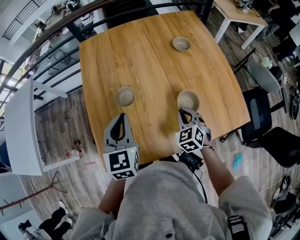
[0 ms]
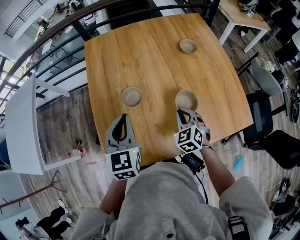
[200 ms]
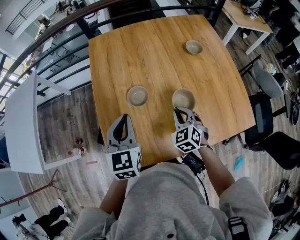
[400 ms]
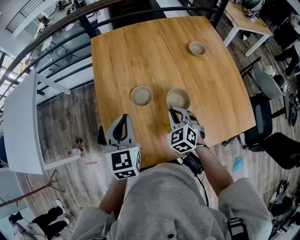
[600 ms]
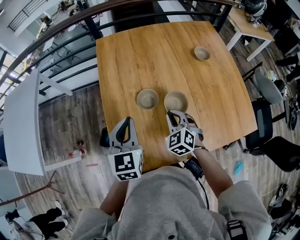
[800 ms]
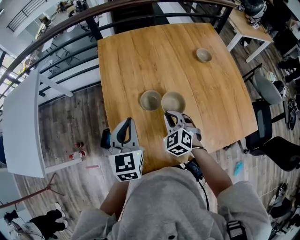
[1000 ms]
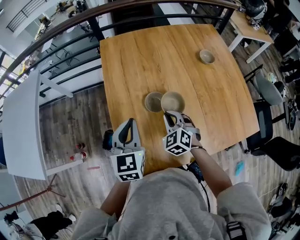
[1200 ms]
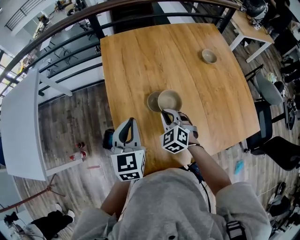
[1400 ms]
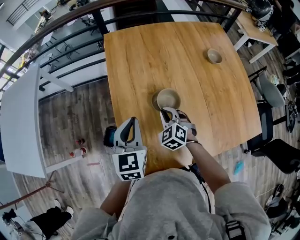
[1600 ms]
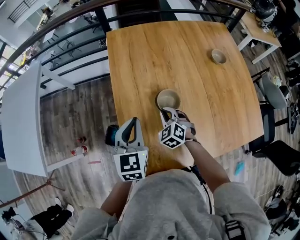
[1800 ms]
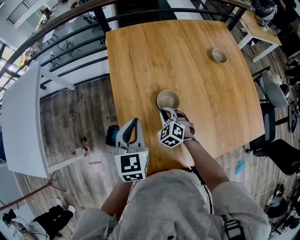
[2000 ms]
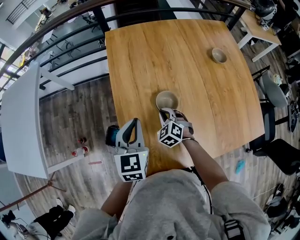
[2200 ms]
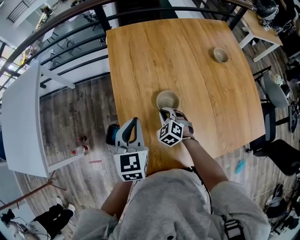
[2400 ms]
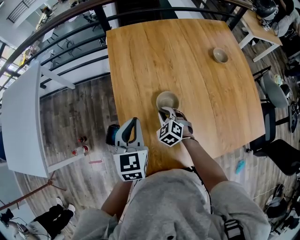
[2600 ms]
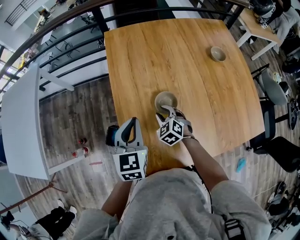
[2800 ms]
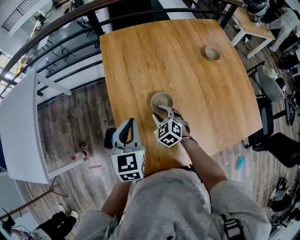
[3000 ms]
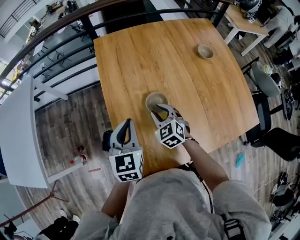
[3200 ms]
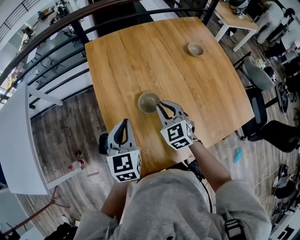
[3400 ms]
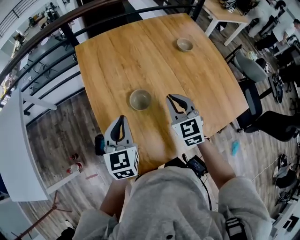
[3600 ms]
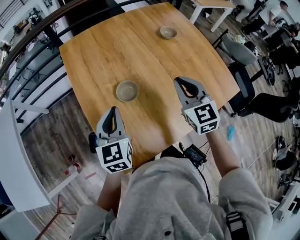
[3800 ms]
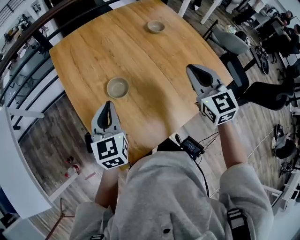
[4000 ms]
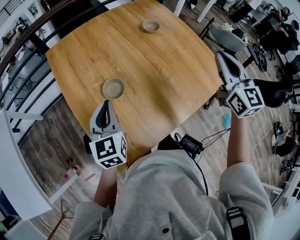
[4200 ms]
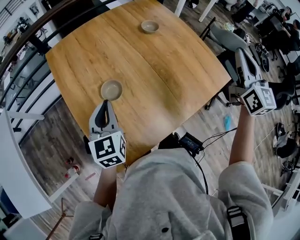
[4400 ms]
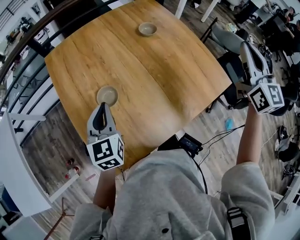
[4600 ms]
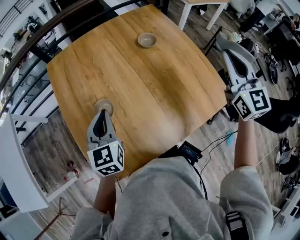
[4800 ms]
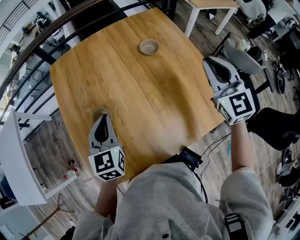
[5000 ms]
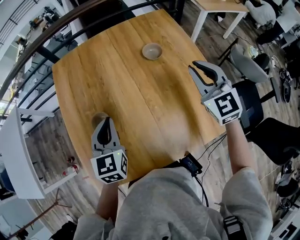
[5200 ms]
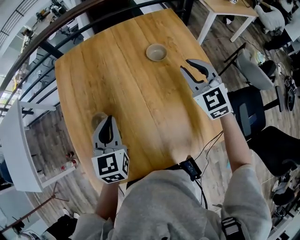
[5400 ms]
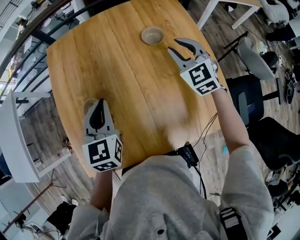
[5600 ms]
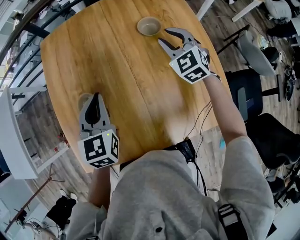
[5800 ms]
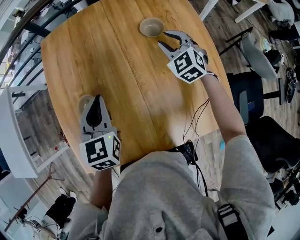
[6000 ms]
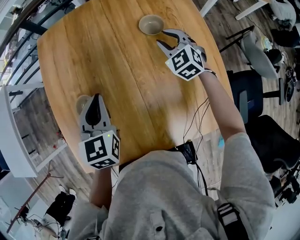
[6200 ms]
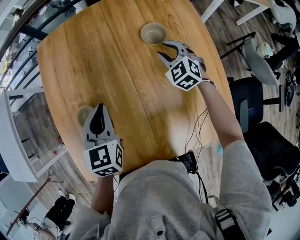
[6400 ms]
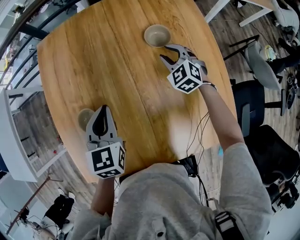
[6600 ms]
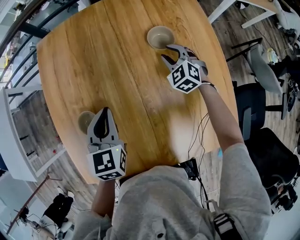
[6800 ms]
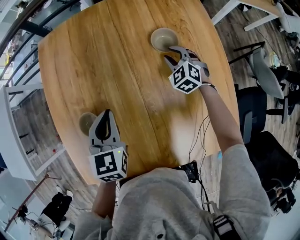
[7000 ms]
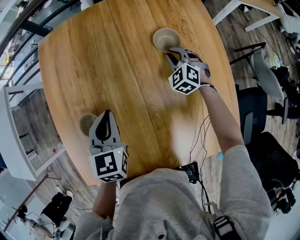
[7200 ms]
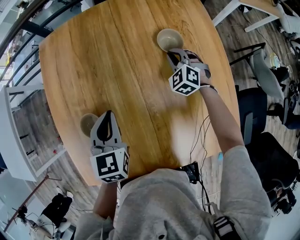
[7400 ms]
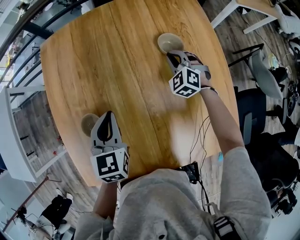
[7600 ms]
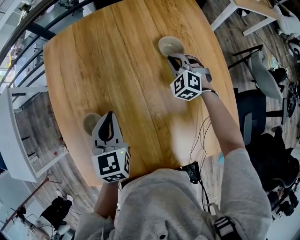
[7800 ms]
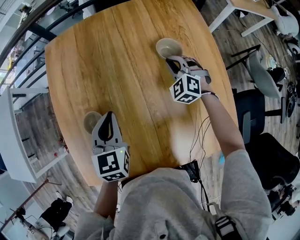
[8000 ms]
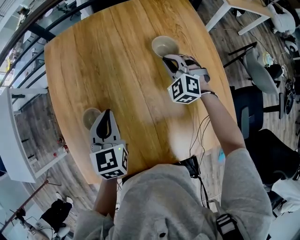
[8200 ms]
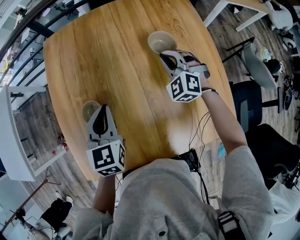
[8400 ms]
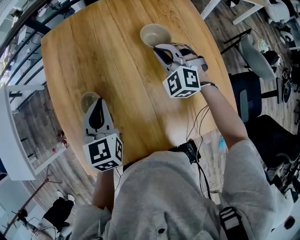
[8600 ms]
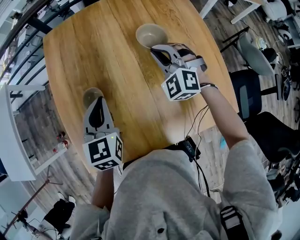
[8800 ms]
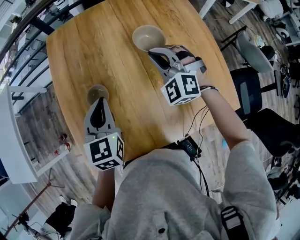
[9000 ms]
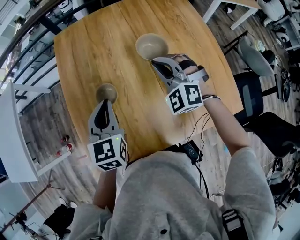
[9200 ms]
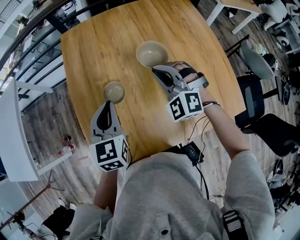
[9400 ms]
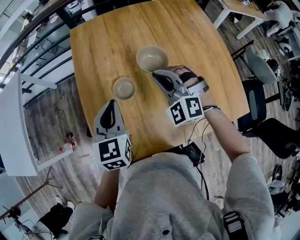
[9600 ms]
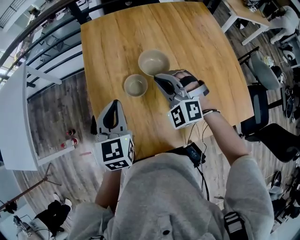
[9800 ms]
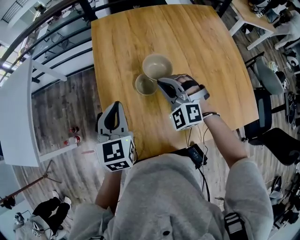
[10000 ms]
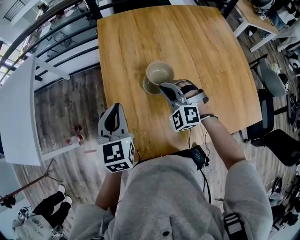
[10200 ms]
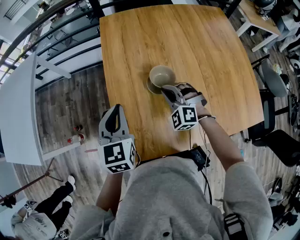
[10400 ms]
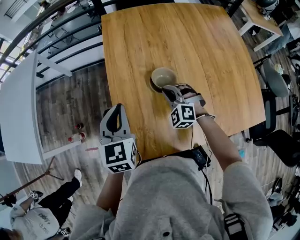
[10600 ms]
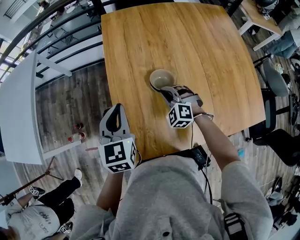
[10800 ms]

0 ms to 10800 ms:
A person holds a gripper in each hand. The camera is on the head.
0 ms to 1600 ms: The left gripper is displaced to the left by about 15 cm. The right gripper travels to the left by about 25 cm.
1600 ms to 3000 ms: The right gripper opens up.
3000 ms to 4600 ms: The left gripper is displaced to the right by roughly 15 cm, while the right gripper heads to the right and upward, covering roughly 60 cm, tilts its fingers some 50 degrees upward, and closes its fingers.
4600 ms to 6200 ms: The right gripper heads forward and downward, covering some 50 cm, angles its fingers downward, by roughly 40 degrees, and opens its fingers, while the left gripper moves to the right and forward, approximately 20 cm.
6200 ms to 7800 ms: The right gripper moves downward, some 5 cm, and closes.
7800 ms to 9200 ms: The left gripper moves to the left, backward and upward, approximately 15 cm. Meanwhile the right gripper is displaced backward, to the left and upward by some 30 cm.
9200 ms to 10800 ms: The right gripper moves to the left and downward, about 30 cm, while the left gripper is displaced to the left by roughly 25 cm.

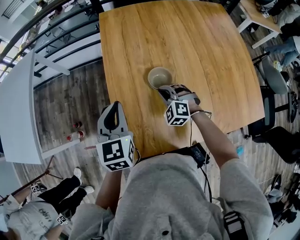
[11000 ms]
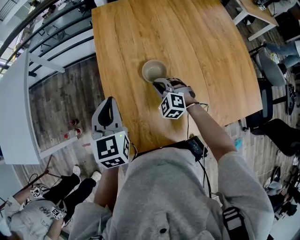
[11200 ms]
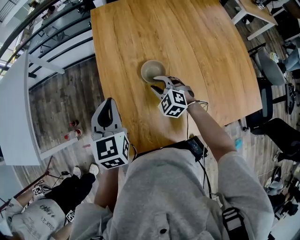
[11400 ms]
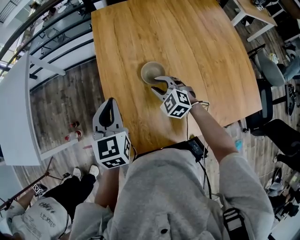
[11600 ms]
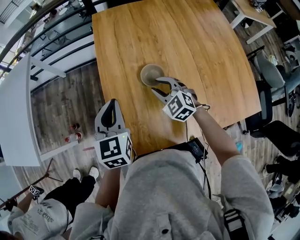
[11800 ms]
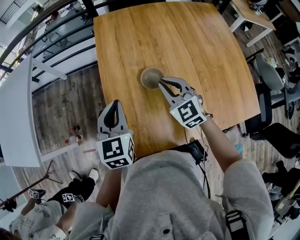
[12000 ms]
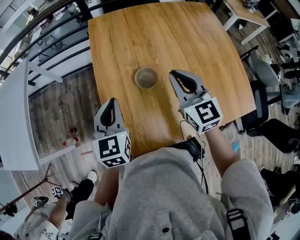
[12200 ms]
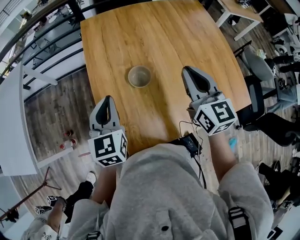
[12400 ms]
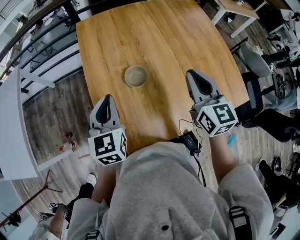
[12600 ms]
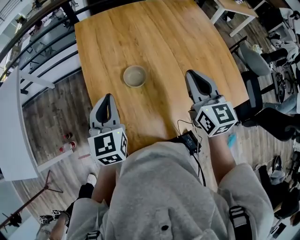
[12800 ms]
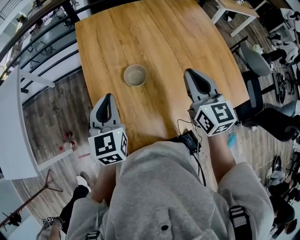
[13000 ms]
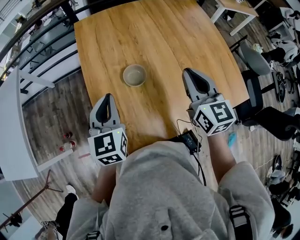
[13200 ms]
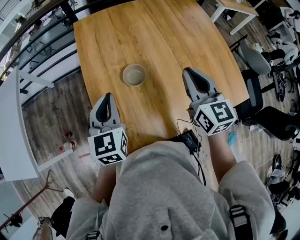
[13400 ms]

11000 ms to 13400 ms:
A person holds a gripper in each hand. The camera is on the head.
11000 ms to 12200 ms: The right gripper travels upward by approximately 25 cm, angles its fingers upward, by approximately 30 degrees, and opens and closes again.
12200 ms to 13400 ms: The right gripper is displaced to the right by some 10 cm.

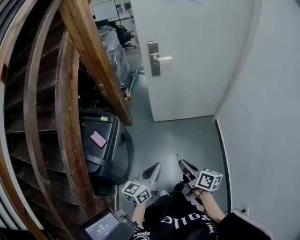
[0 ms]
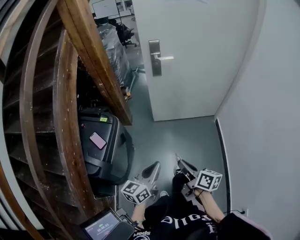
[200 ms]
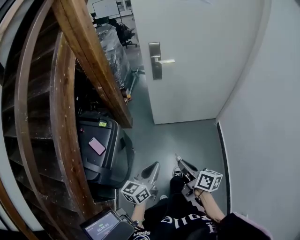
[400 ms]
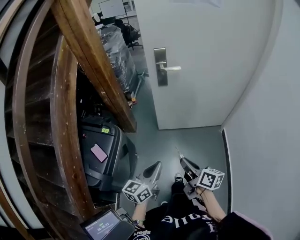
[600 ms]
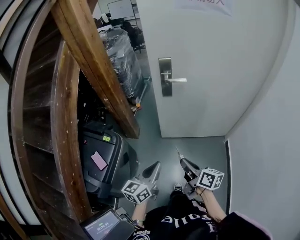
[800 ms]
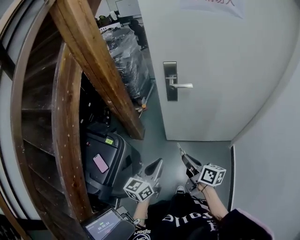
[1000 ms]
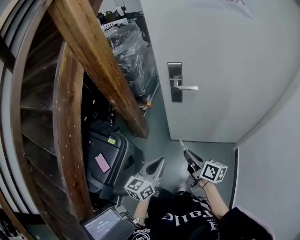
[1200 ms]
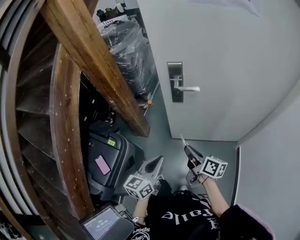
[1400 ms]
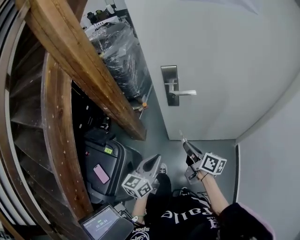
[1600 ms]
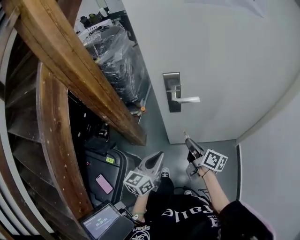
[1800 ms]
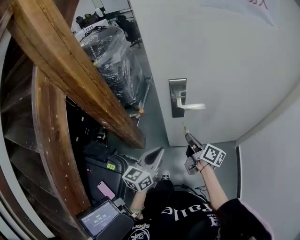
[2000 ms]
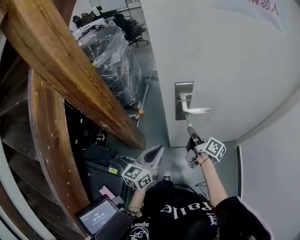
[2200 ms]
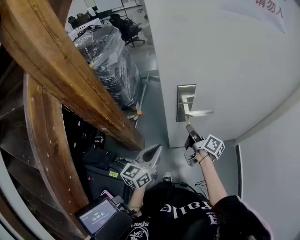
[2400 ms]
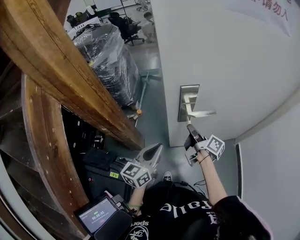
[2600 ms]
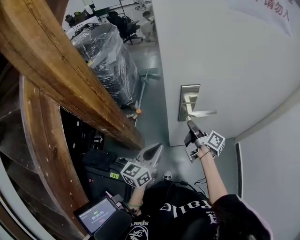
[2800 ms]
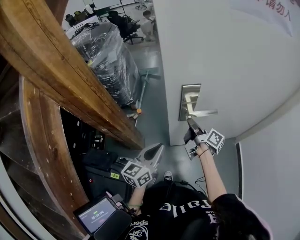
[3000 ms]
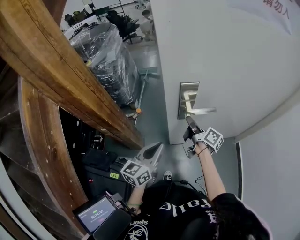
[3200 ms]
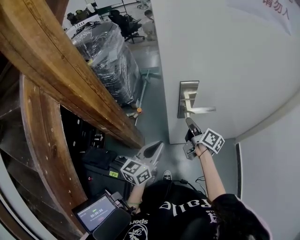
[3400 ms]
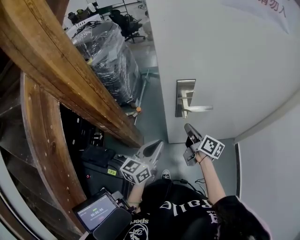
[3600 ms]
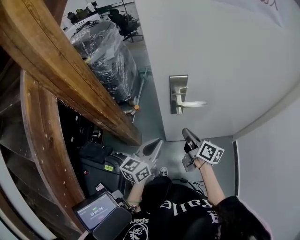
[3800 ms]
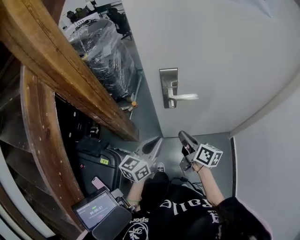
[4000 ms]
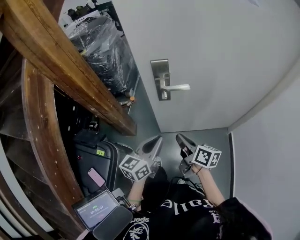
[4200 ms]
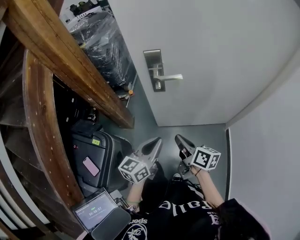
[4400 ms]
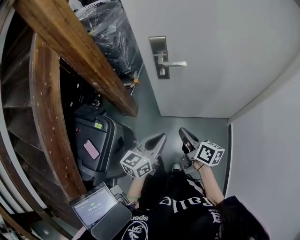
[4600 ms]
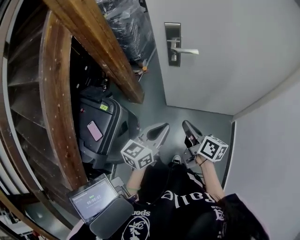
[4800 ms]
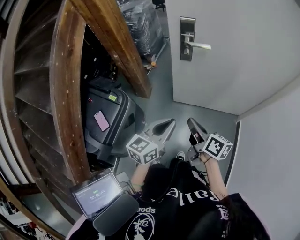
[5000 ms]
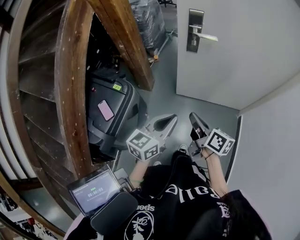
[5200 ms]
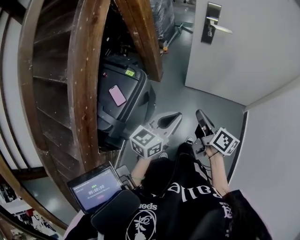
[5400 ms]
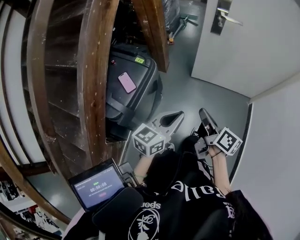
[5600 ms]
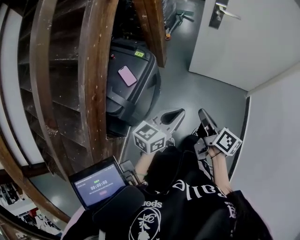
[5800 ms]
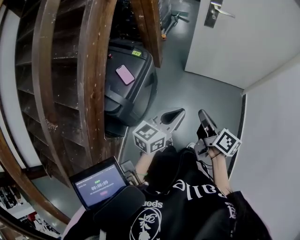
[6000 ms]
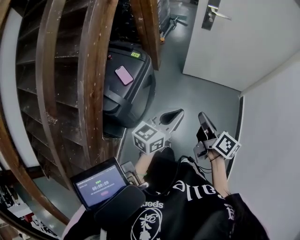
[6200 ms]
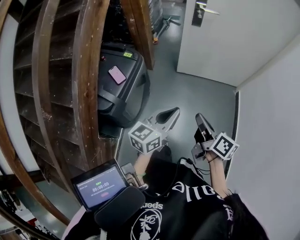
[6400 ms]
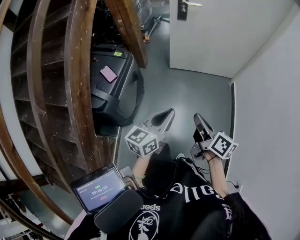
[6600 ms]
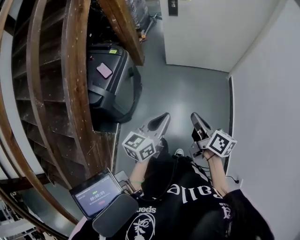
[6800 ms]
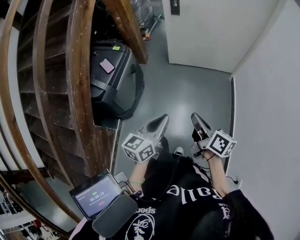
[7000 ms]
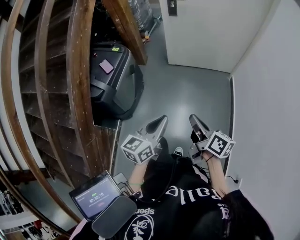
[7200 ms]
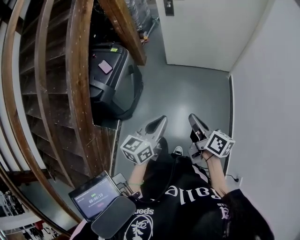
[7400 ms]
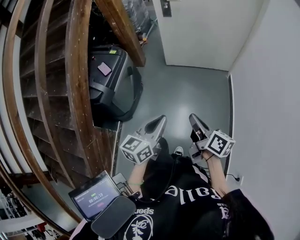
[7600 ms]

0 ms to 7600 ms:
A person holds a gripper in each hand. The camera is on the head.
0 ms to 1600 ms: Both grippers are carried forward, approximately 40 cm.
1600 ms to 3000 ms: The right gripper heads forward, covering approximately 25 cm, and turns by roughly 30 degrees, while the left gripper travels forward and to the left by some 20 cm.
3000 ms to 4600 ms: Both grippers travel together backward and to the right, some 30 cm. The right gripper rotates approximately 30 degrees.
4600 ms to 6000 ms: Both grippers move backward and to the left, about 40 cm.
6000 ms to 7600 ms: Both grippers move backward and to the right, about 30 cm.

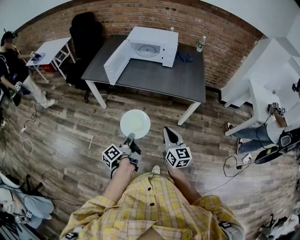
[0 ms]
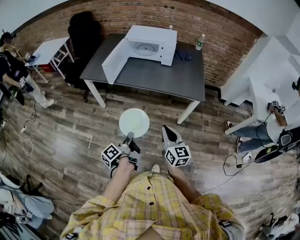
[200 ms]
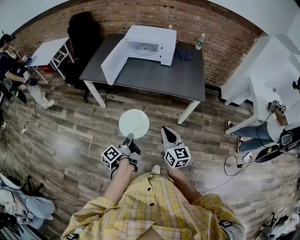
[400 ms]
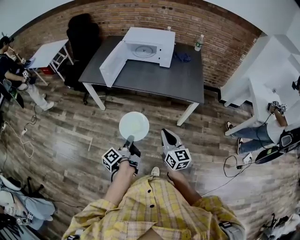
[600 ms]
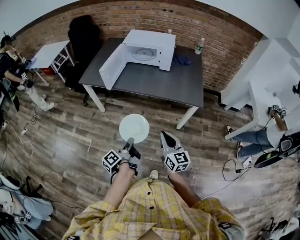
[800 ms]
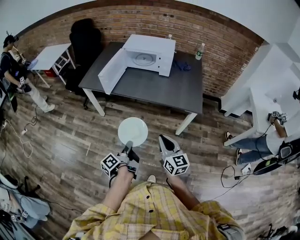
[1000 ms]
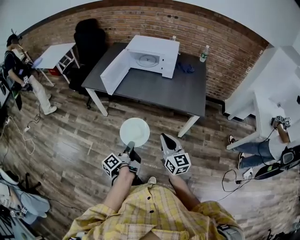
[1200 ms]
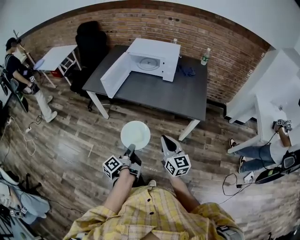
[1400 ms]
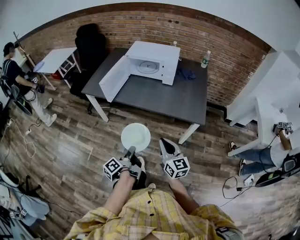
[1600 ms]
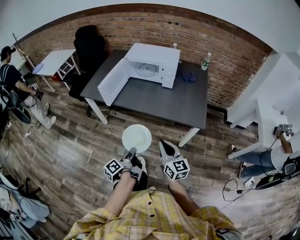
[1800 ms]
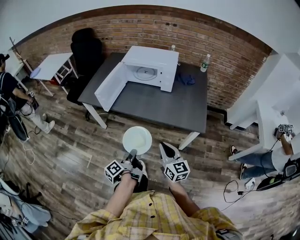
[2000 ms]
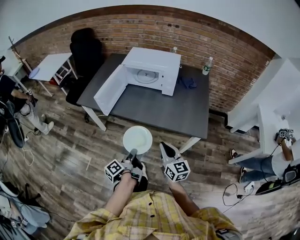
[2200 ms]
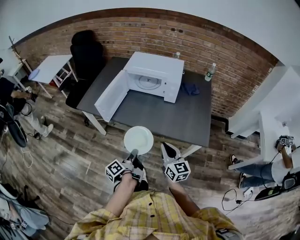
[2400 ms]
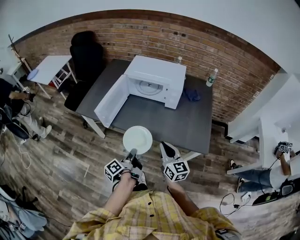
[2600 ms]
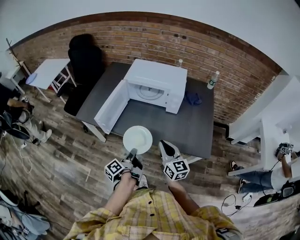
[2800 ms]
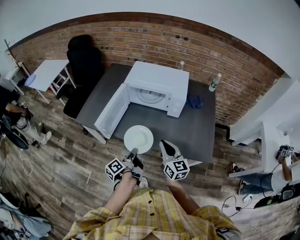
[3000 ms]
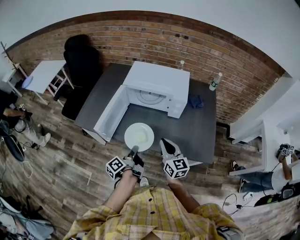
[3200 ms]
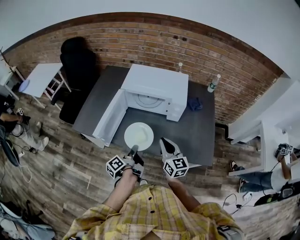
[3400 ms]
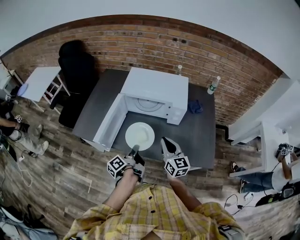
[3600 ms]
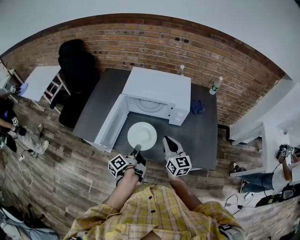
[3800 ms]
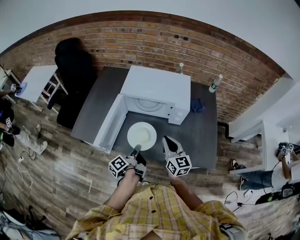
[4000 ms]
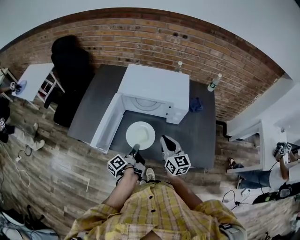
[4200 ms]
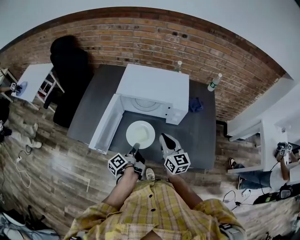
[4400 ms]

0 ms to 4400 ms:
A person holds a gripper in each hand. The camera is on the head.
0 ms to 1400 ms: The right gripper moves some 10 cm.
1400 ms to 3000 ms: The right gripper changes place by approximately 35 cm.
3000 ms to 4400 ms: The right gripper shifts by some 15 cm.
